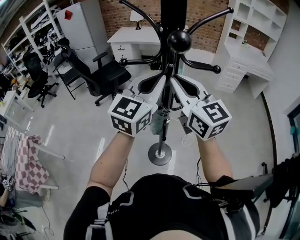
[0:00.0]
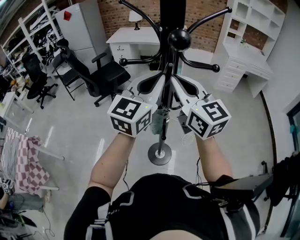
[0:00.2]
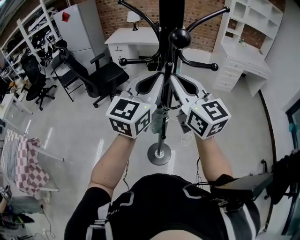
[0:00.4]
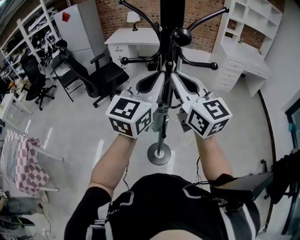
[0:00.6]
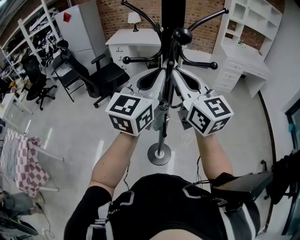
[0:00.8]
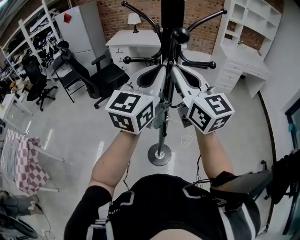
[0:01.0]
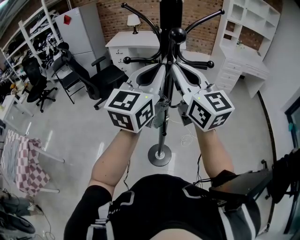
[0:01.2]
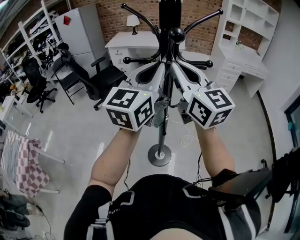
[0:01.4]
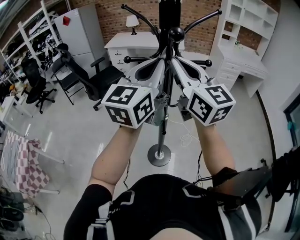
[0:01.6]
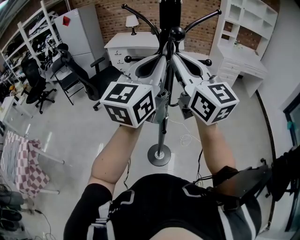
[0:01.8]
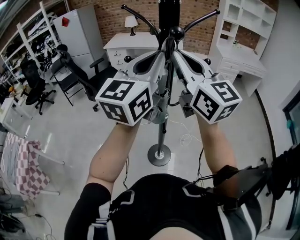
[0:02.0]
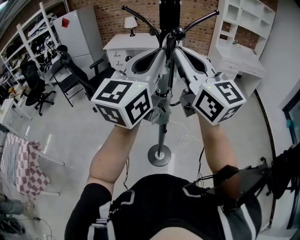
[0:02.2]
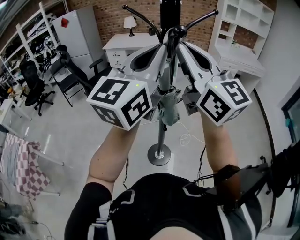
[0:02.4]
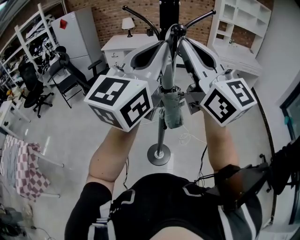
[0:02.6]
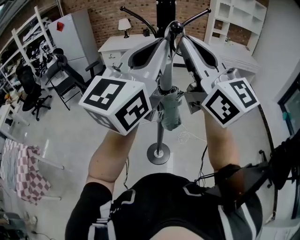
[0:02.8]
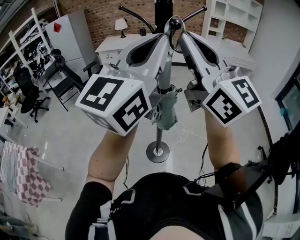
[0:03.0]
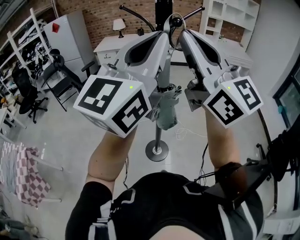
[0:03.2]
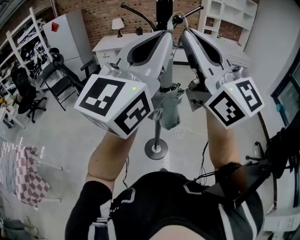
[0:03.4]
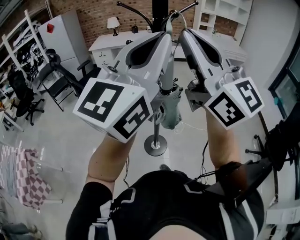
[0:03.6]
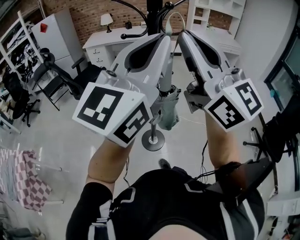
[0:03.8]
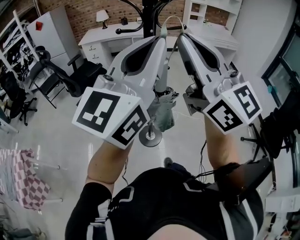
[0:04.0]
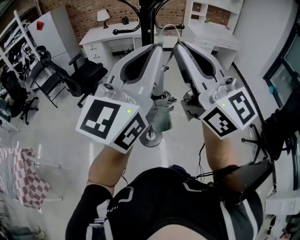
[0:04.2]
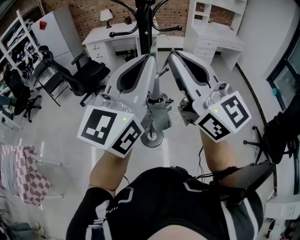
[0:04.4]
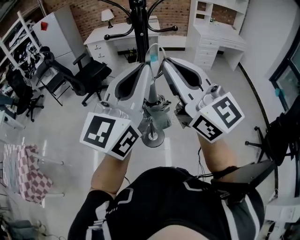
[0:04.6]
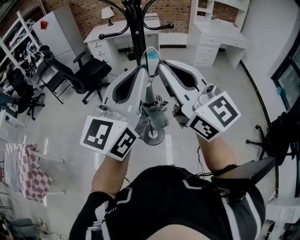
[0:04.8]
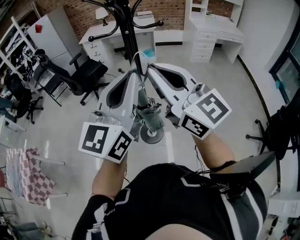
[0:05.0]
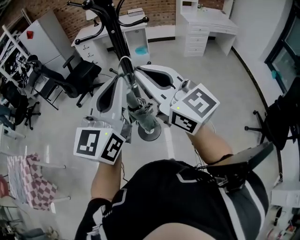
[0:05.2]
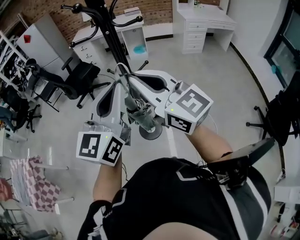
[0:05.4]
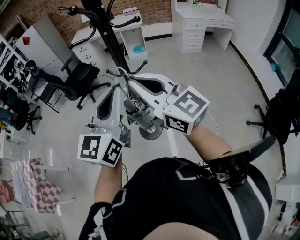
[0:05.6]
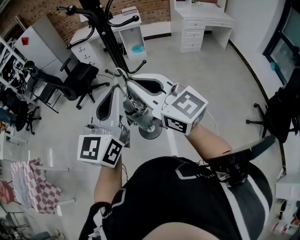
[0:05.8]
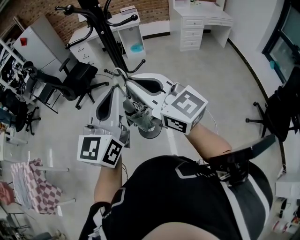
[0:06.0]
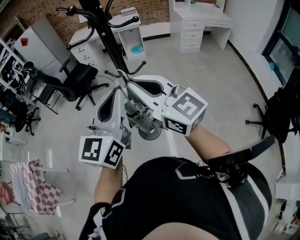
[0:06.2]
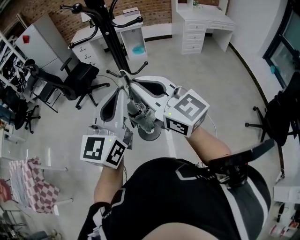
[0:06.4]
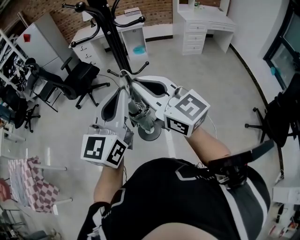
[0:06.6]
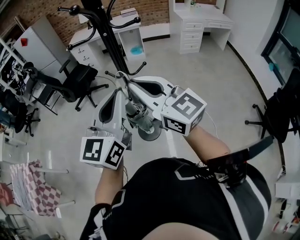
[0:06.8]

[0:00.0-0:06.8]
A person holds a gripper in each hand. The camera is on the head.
0:00.0 to 0:01.4: Both grippers move upward, about 5 cm.
0:01.4 to 0:02.8: Both grippers move upward and backward, some 15 cm.
0:02.8 to 0:04.0: The two grippers go approximately 10 cm backward.
0:04.0 to 0:05.4: Both grippers travel together downward, some 15 cm. The right gripper swivels some 20 degrees.
0:05.4 to 0:06.8: The grippers move only a little.

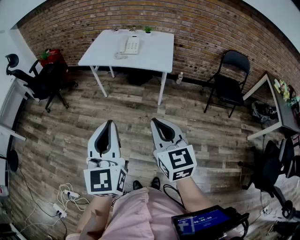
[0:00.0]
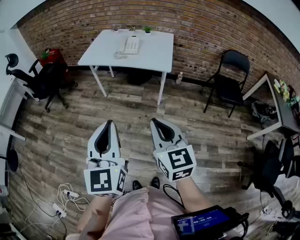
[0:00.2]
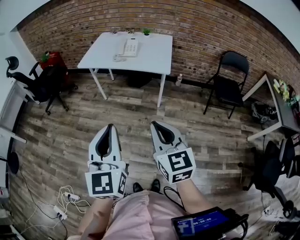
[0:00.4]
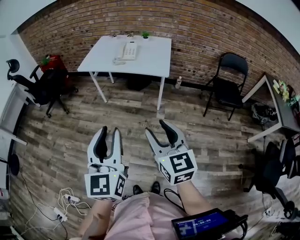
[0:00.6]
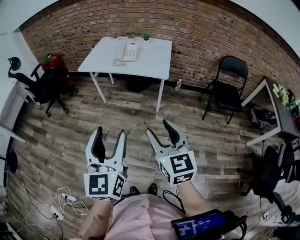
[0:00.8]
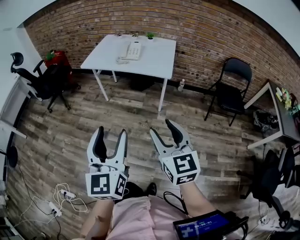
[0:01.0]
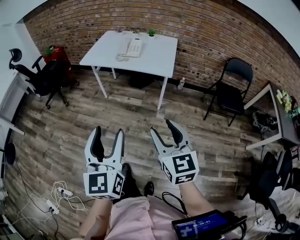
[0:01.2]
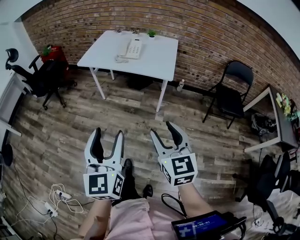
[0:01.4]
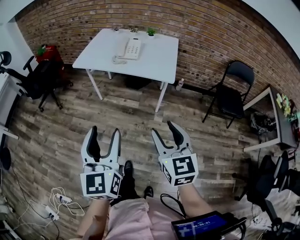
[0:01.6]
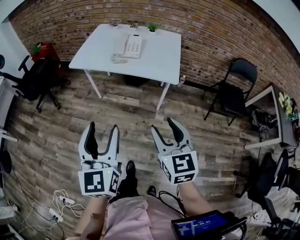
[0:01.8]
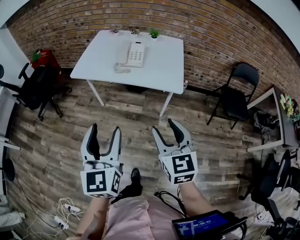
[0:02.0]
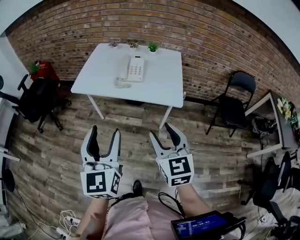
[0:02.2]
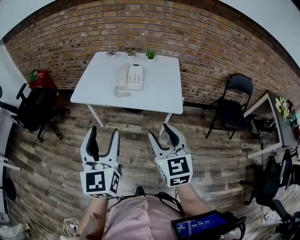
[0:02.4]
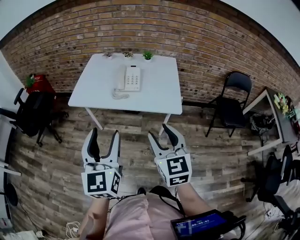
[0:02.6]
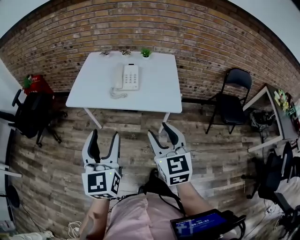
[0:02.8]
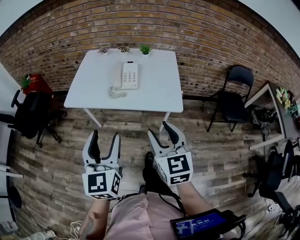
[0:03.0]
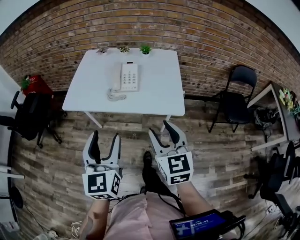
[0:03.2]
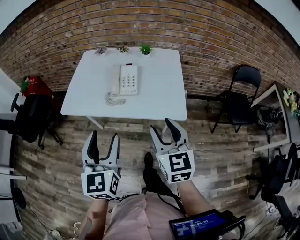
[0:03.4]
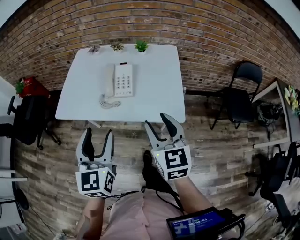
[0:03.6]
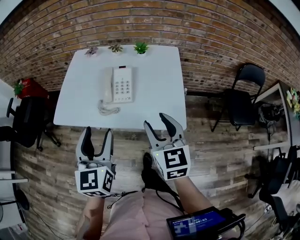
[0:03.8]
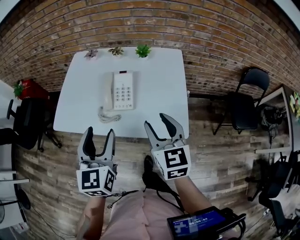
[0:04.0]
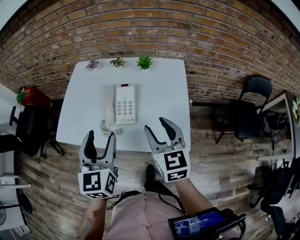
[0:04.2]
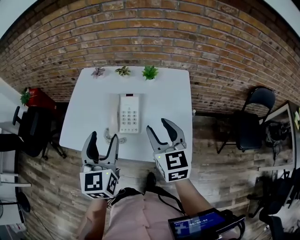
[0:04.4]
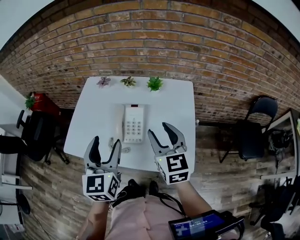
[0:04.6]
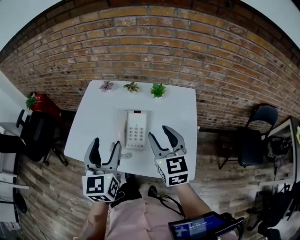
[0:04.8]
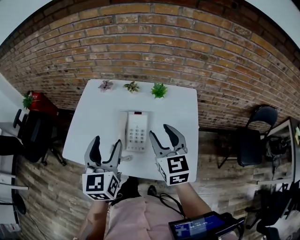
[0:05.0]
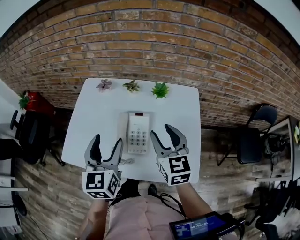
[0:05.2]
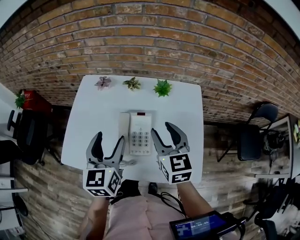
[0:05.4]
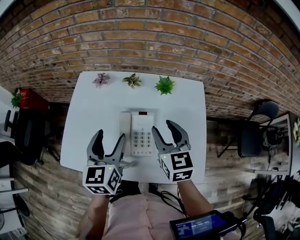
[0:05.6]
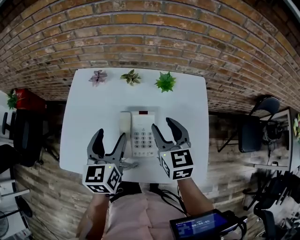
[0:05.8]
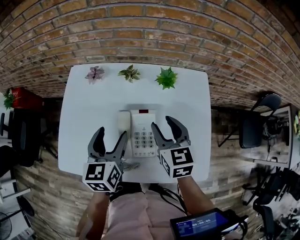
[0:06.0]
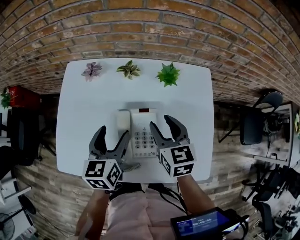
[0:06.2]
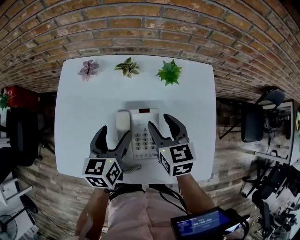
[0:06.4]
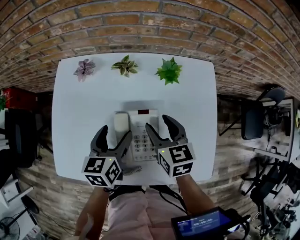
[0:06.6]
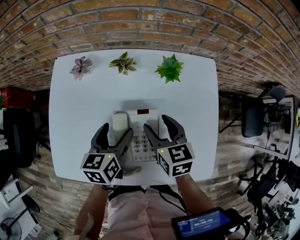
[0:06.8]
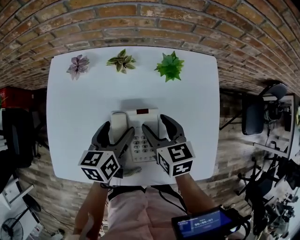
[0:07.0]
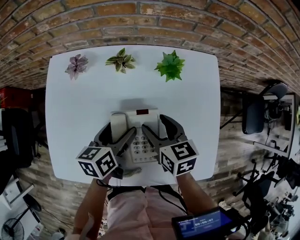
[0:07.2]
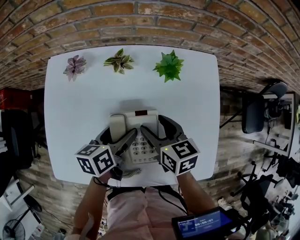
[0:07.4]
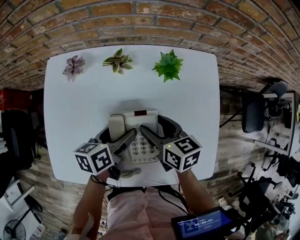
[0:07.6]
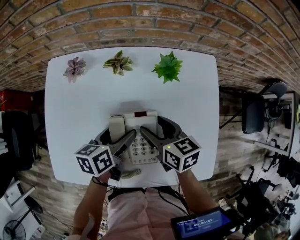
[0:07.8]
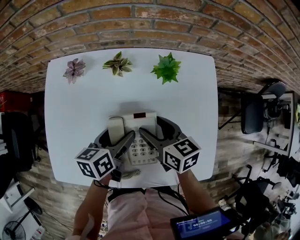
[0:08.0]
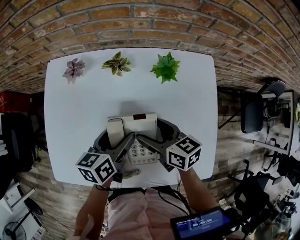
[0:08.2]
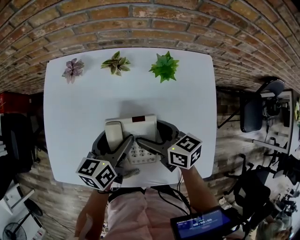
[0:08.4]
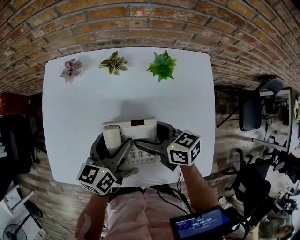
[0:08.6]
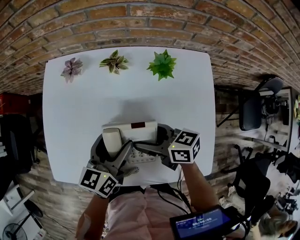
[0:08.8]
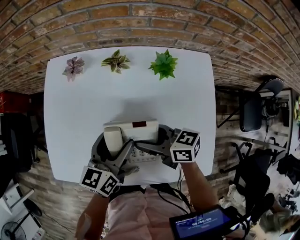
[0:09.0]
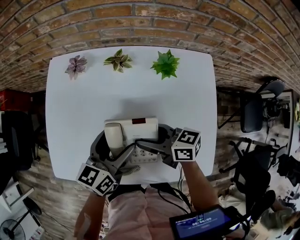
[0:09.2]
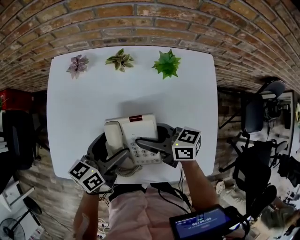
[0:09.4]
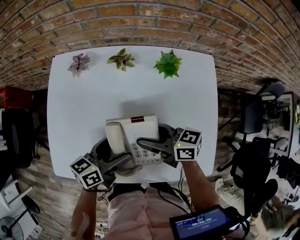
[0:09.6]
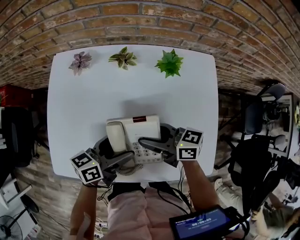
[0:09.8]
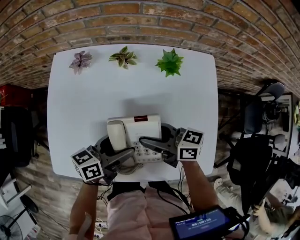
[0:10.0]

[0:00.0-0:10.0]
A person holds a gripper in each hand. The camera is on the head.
0:00.0 to 0:01.4: The right gripper shifts by approximately 5 cm, and opens, while the left gripper moves approximately 5 cm, and opens up.
0:01.4 to 0:02.8: The two grippers go approximately 30 cm forward.
0:02.8 to 0:04.2: Both grippers travel together forward, some 30 cm.
0:04.2 to 0:05.8: Both grippers travel together forward, approximately 20 cm.
0:05.8 to 0:07.2: The grippers both shift downward by approximately 15 cm. The left gripper turns by about 40 degrees; the right gripper swivels roughly 20 degrees.
0:07.2 to 0:08.6: The right gripper turns by some 30 degrees.
0:08.6 to 0:10.0: The left gripper changes place by about 5 cm, and swivels roughly 30 degrees; the right gripper closes its fingers.

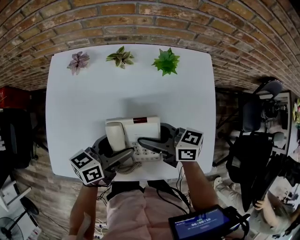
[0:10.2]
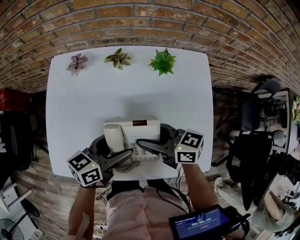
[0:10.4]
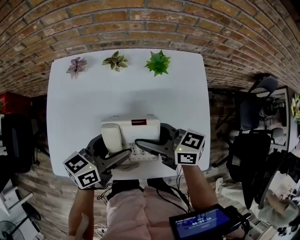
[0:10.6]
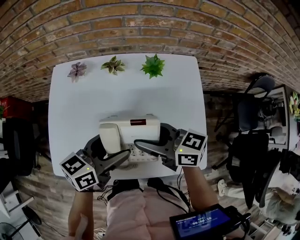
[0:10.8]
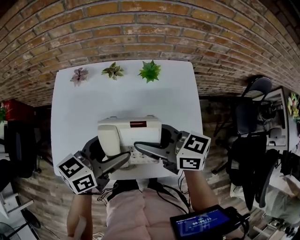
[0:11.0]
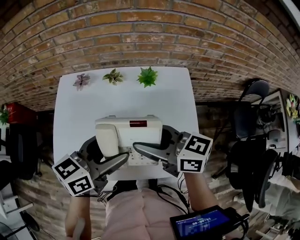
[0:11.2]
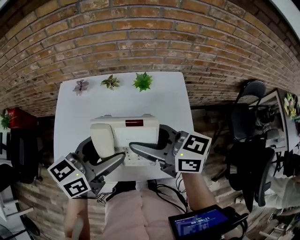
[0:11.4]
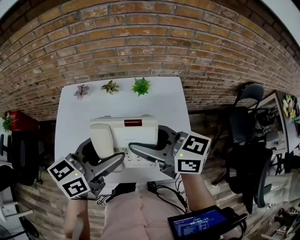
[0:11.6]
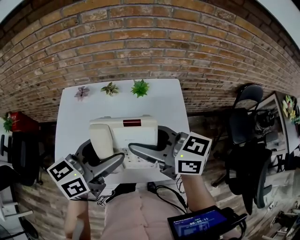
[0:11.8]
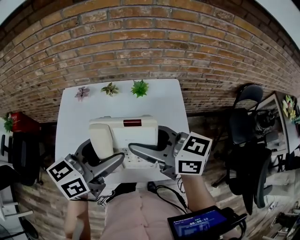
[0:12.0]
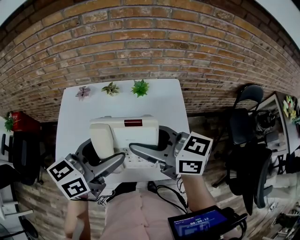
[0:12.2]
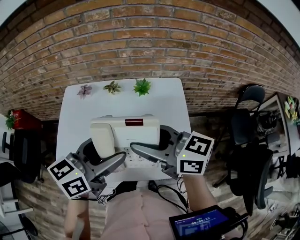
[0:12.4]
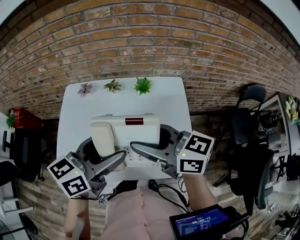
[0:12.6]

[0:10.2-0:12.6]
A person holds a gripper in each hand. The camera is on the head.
0:10.2 to 0:11.4: Both grippers travel together upward, approximately 20 cm. The left gripper rotates some 20 degrees.
0:11.4 to 0:12.6: The grippers move only a little.

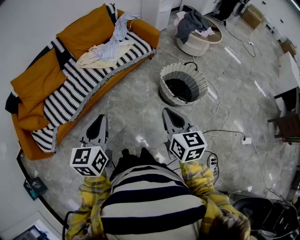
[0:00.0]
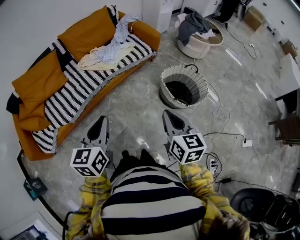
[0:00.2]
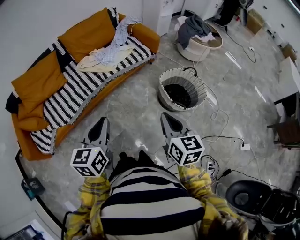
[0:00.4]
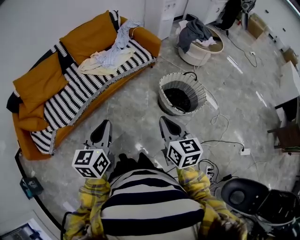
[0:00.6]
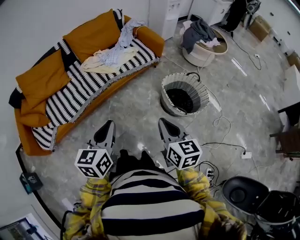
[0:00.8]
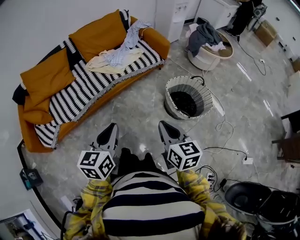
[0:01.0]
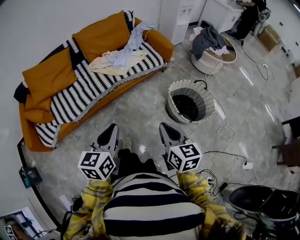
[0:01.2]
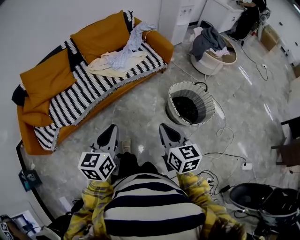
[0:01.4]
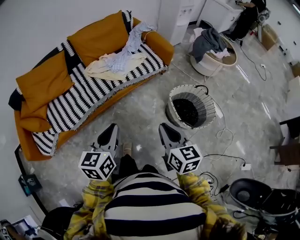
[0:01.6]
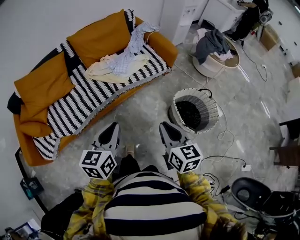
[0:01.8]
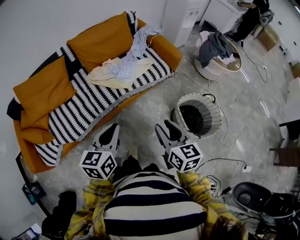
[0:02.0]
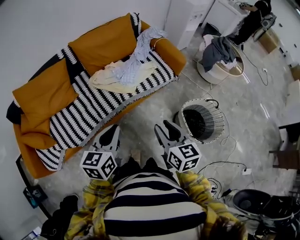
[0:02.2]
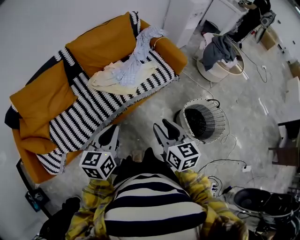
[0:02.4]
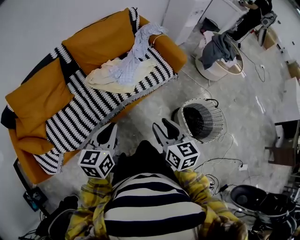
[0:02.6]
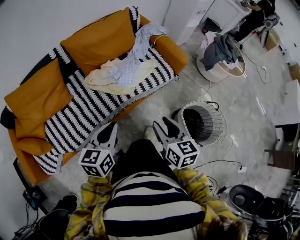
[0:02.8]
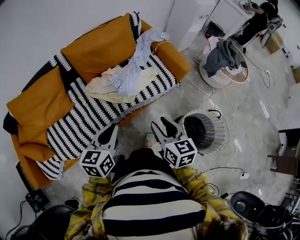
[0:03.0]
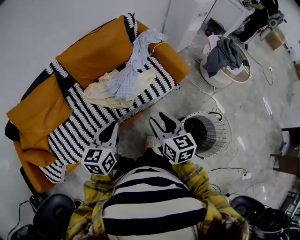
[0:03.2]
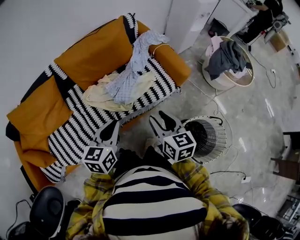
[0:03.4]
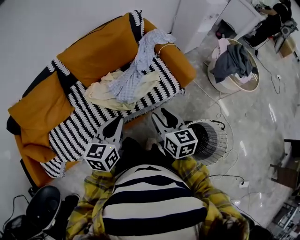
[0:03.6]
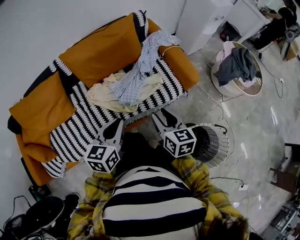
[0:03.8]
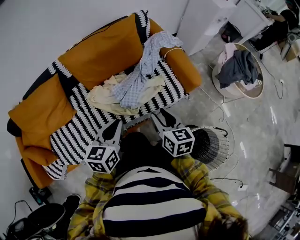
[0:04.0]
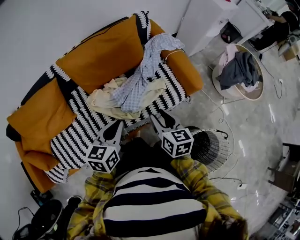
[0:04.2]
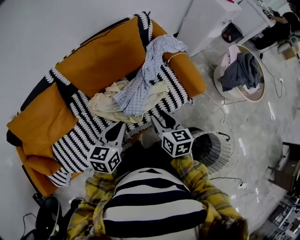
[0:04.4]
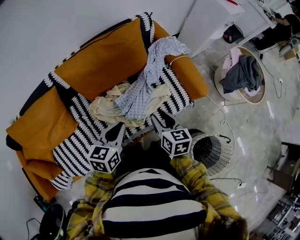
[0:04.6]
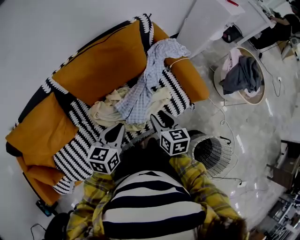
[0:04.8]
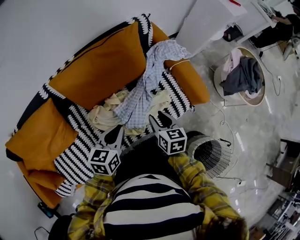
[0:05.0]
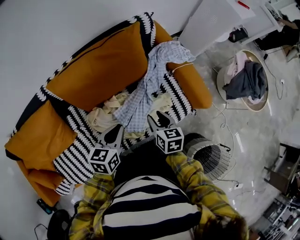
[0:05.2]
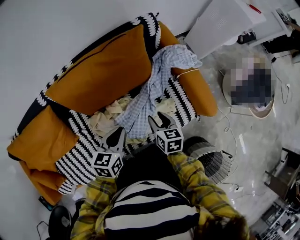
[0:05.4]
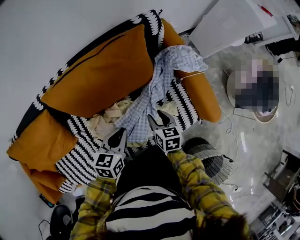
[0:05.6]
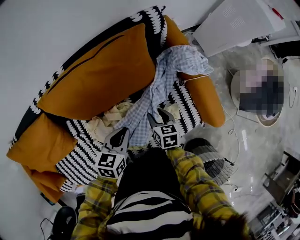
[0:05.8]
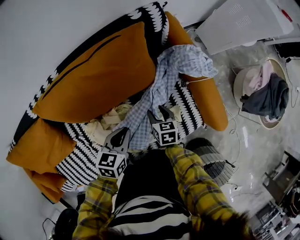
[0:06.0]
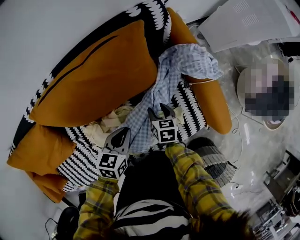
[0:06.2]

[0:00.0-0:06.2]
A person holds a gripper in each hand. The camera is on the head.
0:00.0 to 0:01.6: Both grippers move forward, about 10 cm.
0:01.6 to 0:03.2: Both grippers move forward, roughly 30 cm. The right gripper opens.
0:03.2 to 0:04.6: The right gripper heads forward and downward, covering approximately 20 cm; the left gripper is displaced forward by approximately 20 cm.
0:04.6 to 0:06.2: The right gripper moves downward and forward, approximately 35 cm, and turns by roughly 20 degrees. The left gripper is displaced forward and downward by some 25 cm.
